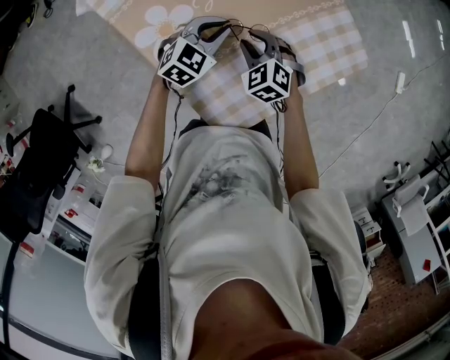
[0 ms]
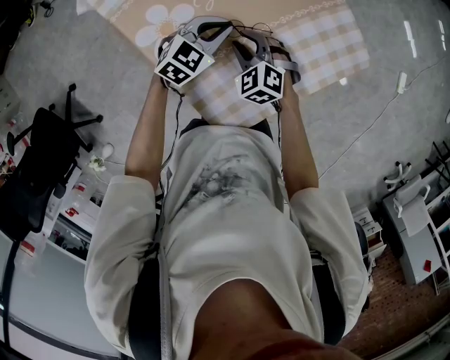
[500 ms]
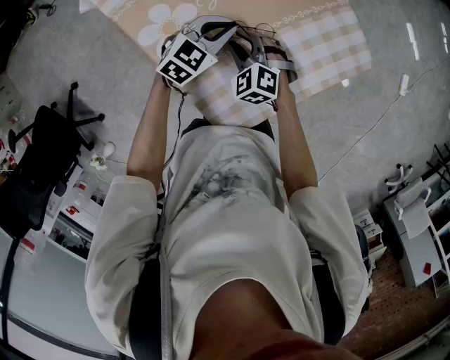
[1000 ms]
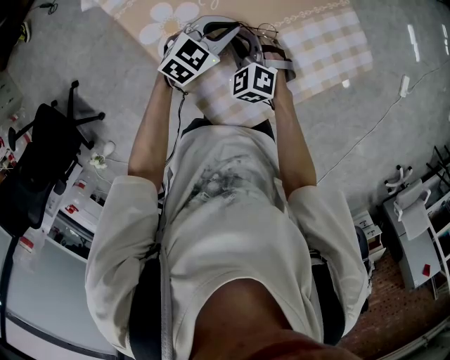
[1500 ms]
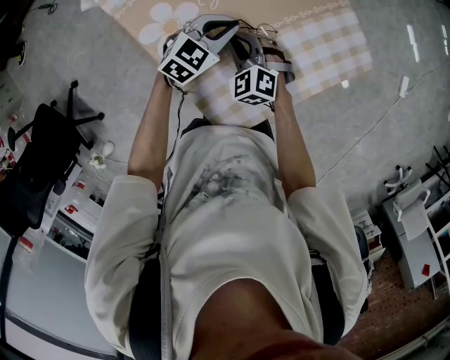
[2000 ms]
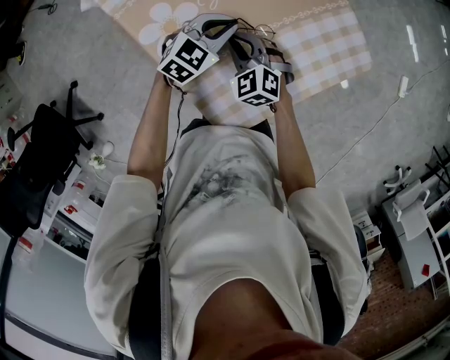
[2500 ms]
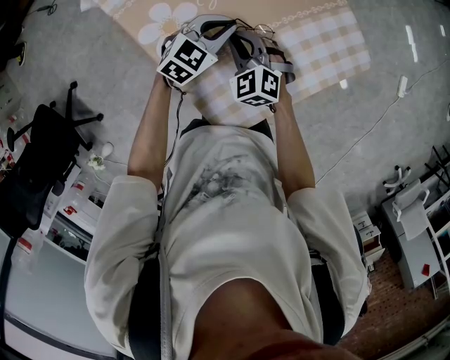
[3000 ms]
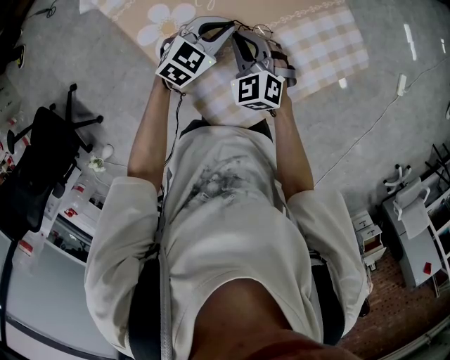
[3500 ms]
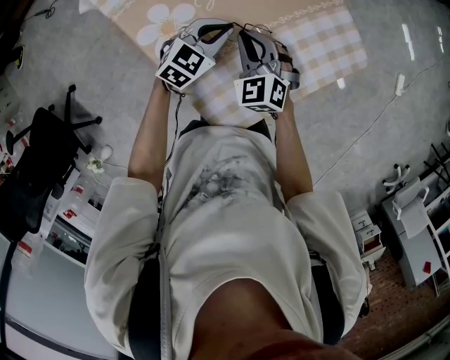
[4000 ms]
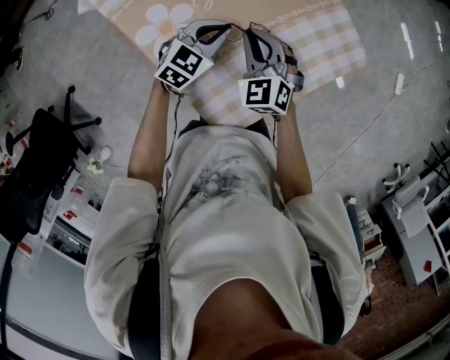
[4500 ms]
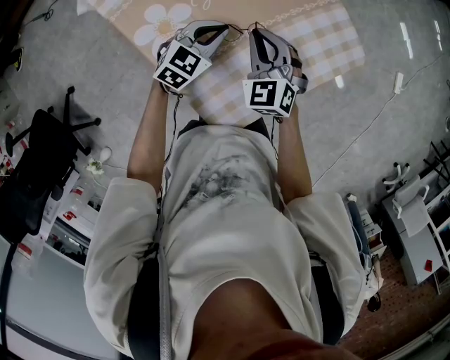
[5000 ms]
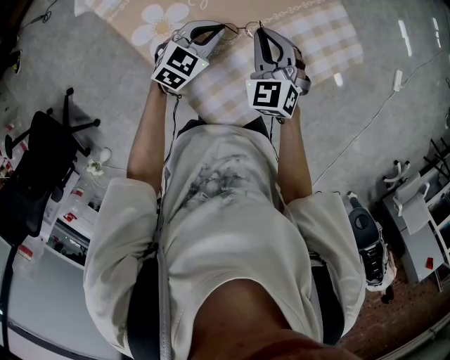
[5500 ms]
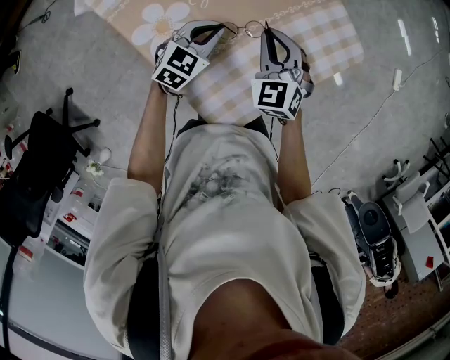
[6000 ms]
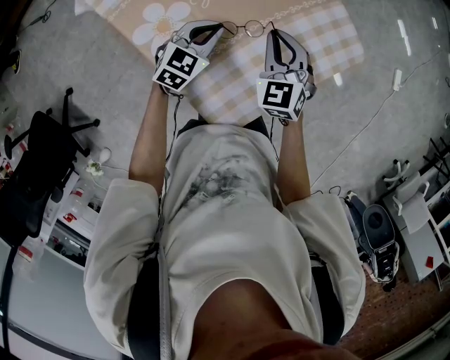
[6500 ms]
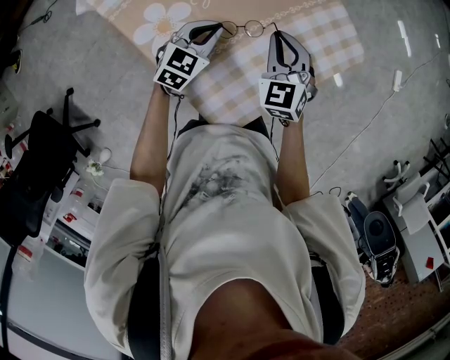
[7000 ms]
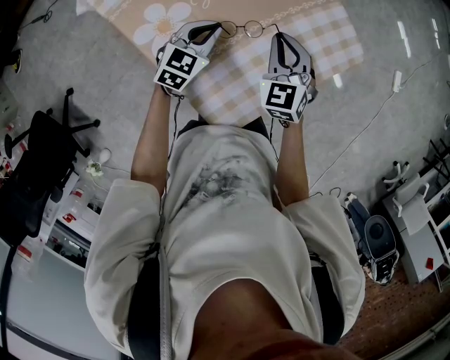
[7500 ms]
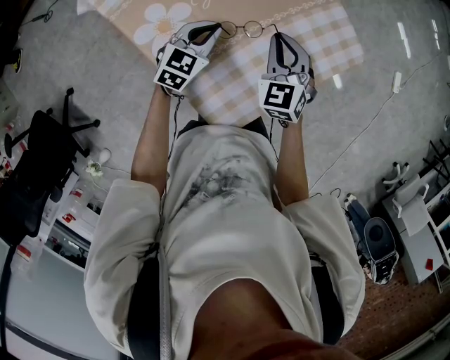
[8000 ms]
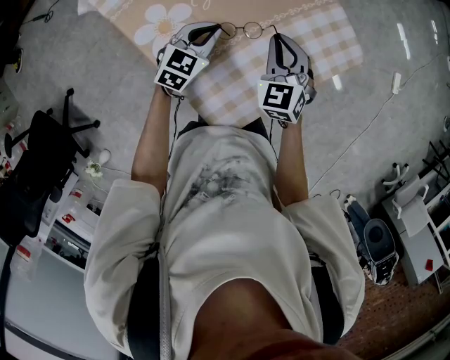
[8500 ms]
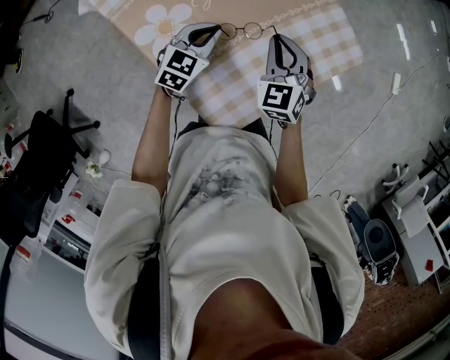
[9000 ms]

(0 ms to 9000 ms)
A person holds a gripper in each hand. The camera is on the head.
0 ms - 2000 ms: The grippers stay close to where they were, moving slightly.
2000 ms - 4500 ms: The right gripper moves upward, approximately 10 cm.
4500 ms - 7000 ms: The right gripper goes some 5 cm to the right.
7000 ms - 9000 ms: Both grippers stay about where they are.

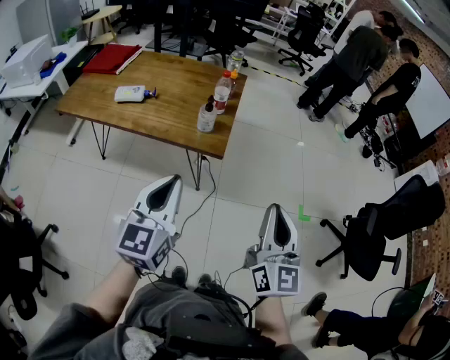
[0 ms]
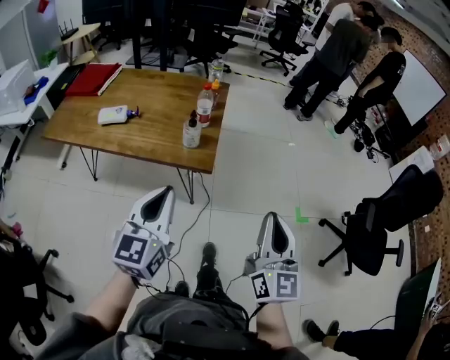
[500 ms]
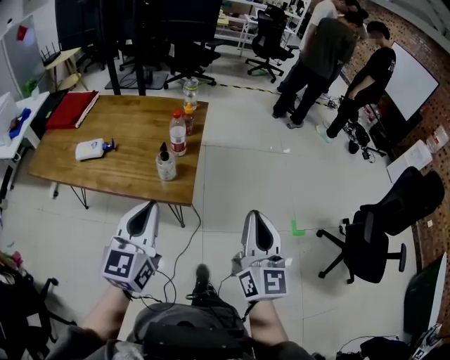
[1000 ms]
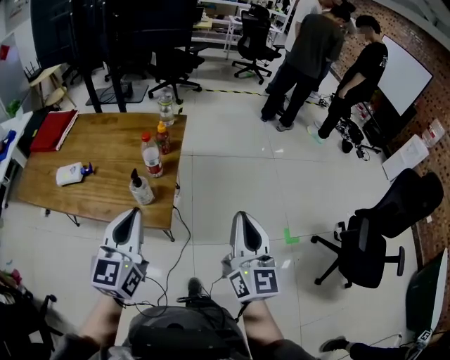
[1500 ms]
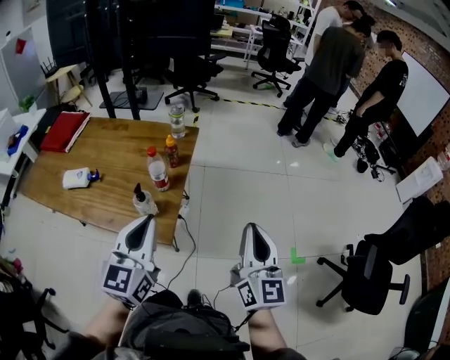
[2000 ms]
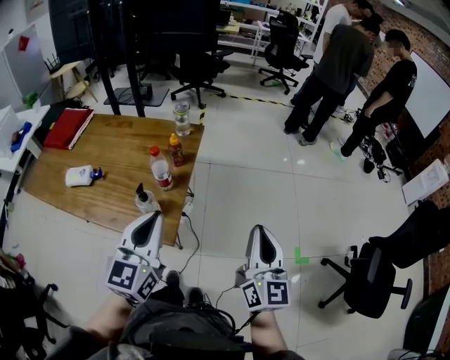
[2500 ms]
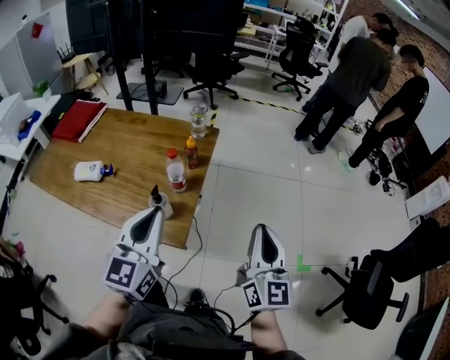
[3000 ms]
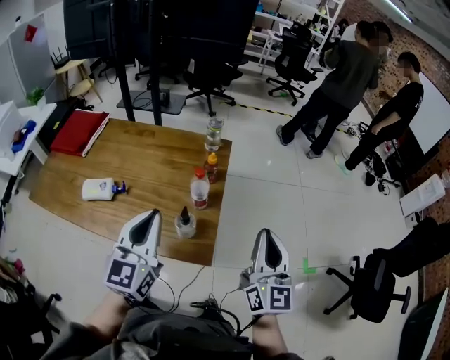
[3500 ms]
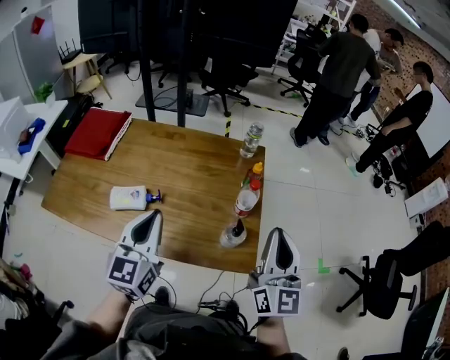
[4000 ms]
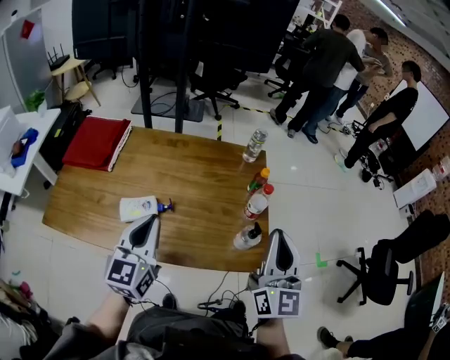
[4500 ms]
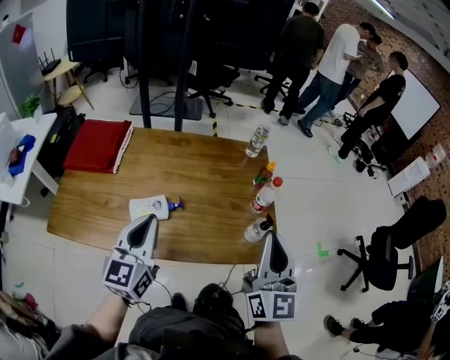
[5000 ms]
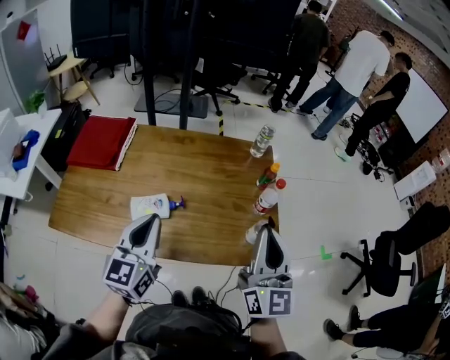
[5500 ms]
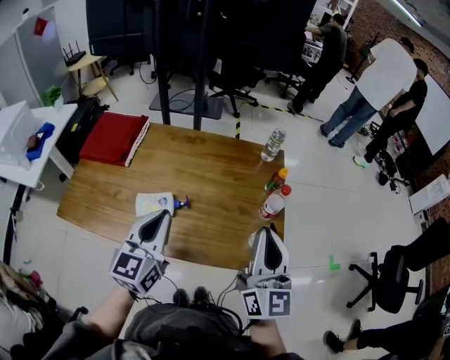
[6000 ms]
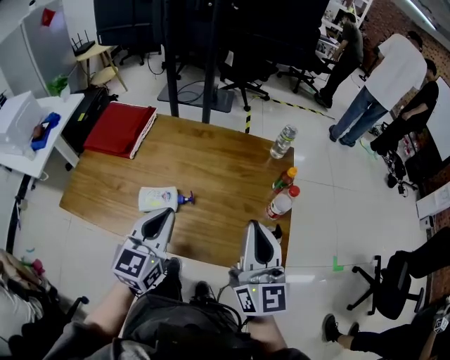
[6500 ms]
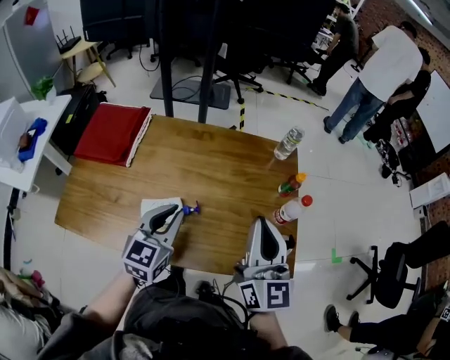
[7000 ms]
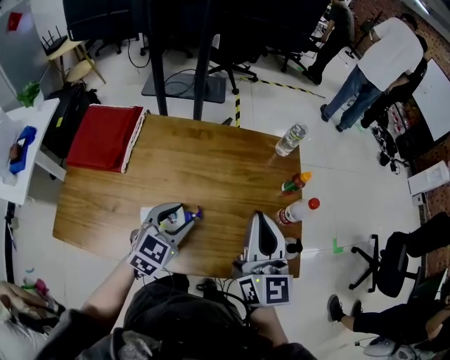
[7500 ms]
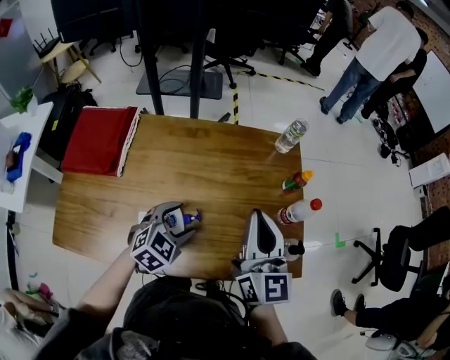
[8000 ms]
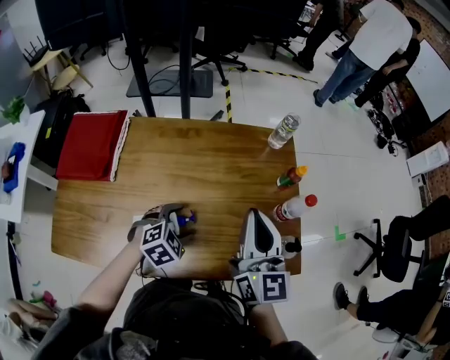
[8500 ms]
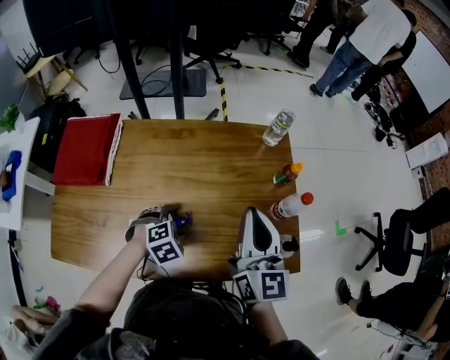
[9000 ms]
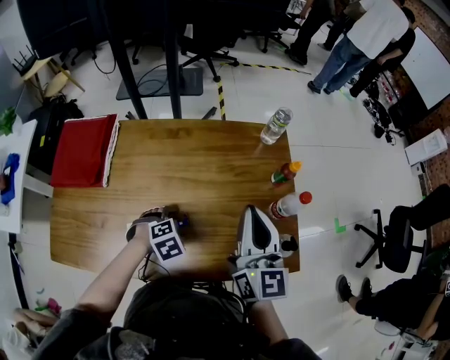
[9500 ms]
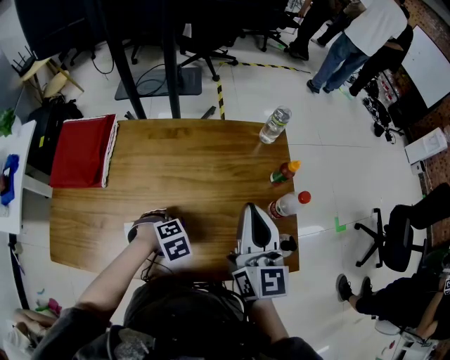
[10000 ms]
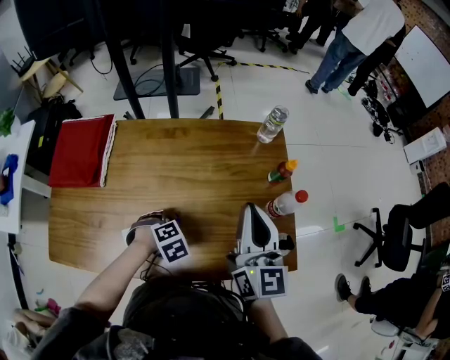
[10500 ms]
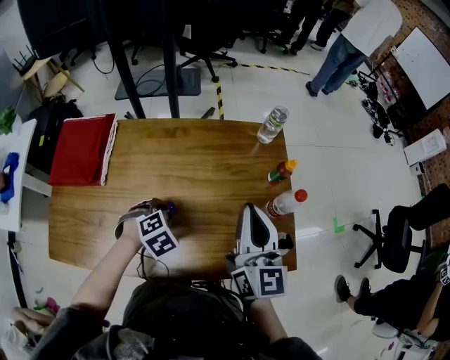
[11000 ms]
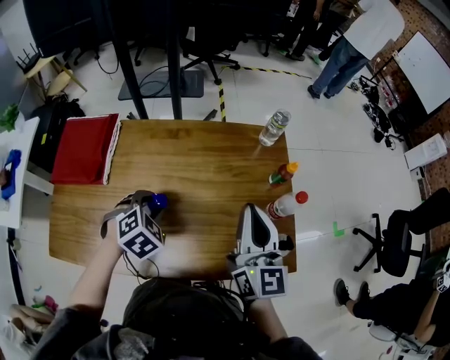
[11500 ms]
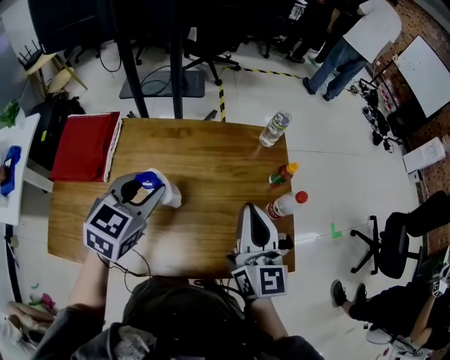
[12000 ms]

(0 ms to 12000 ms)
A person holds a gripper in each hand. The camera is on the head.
0 ms - 2000 ms: The pair of grippers is taken forward and to the right, roughly 40 cm.
2000 ms - 4000 ms: Both grippers are carried to the left, some 40 cm.
4000 ms - 6000 ms: The two grippers go roughly 15 cm to the left.
6000 ms - 8000 ms: The right gripper heads forward, to the left and downward, covering some 25 cm, while the left gripper travels downward and forward by about 25 cm, tips its fingers downward by some 40 degrees, and opens its fingers.
8000 ms - 10000 ms: The right gripper changes place by roughly 5 cm; the left gripper moves downward, about 10 cm, and tips its fingers downward by roughly 40 degrees.
10000 ms - 12000 ms: The left gripper moves upward, about 25 cm, and tilts its fingers about 50 degrees upward.

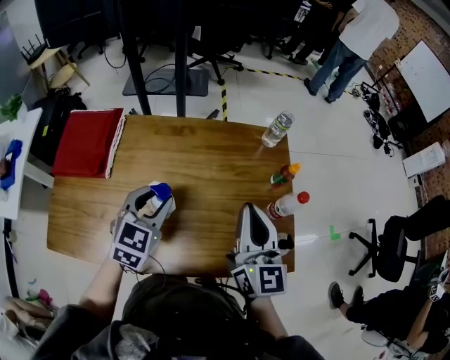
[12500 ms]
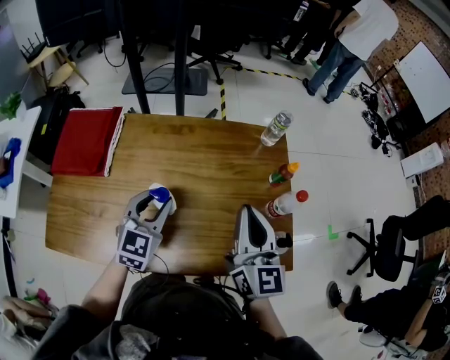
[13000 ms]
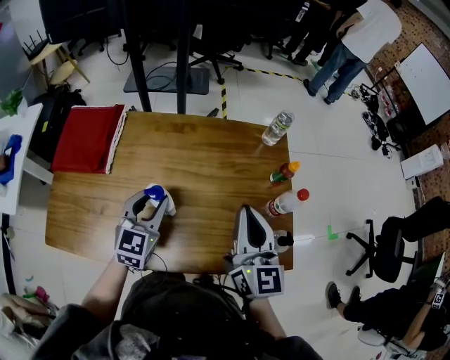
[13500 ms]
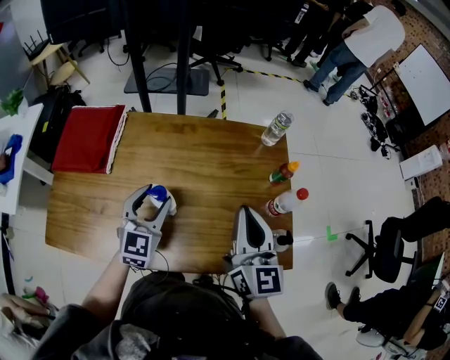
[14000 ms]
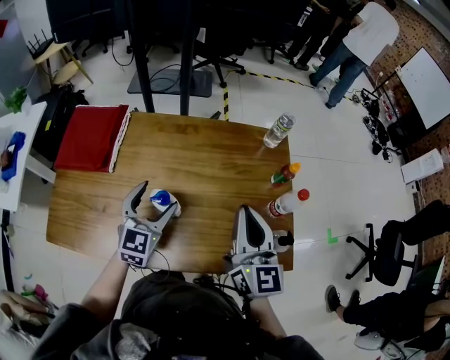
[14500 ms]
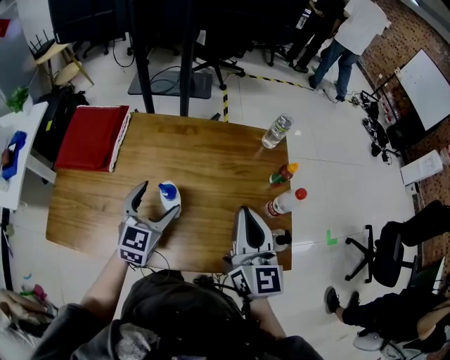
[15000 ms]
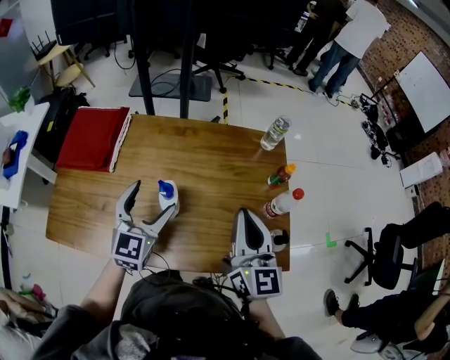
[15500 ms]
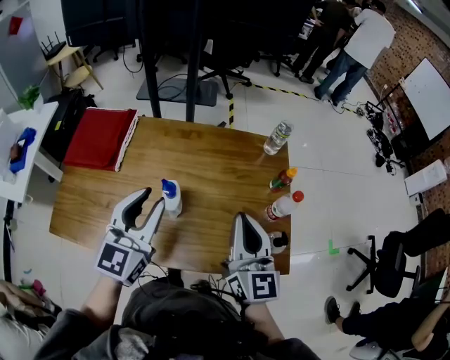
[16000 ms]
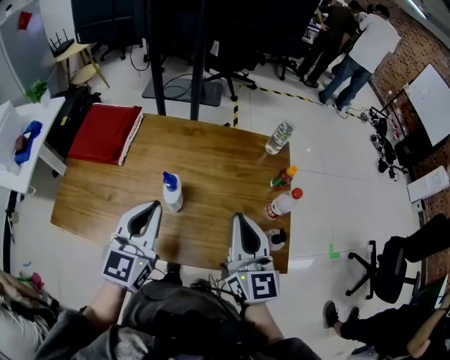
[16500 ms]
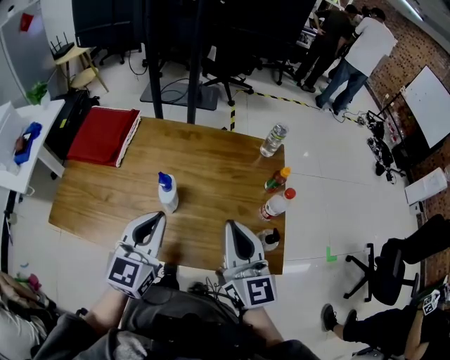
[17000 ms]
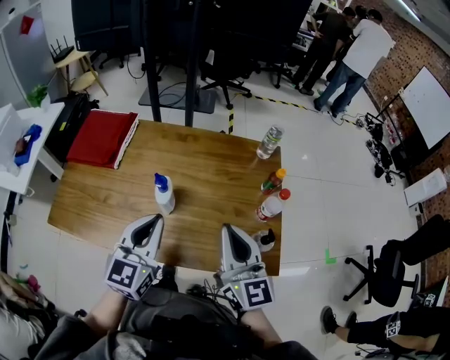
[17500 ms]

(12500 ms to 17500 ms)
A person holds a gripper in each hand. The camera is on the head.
12500 ms - 15000 ms: The left gripper ends up about 5 cm from where it was, and opens.
15000 ms - 17500 ms: The left gripper is displaced backward, upward and to the right by some 20 cm, and closes up; the right gripper travels backward by roughly 10 cm.

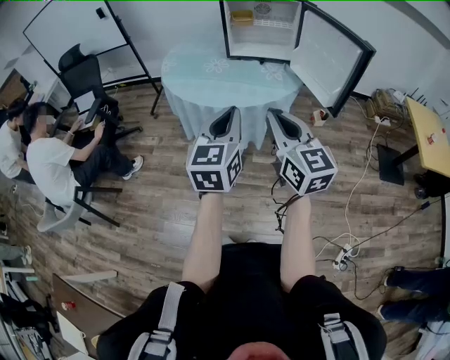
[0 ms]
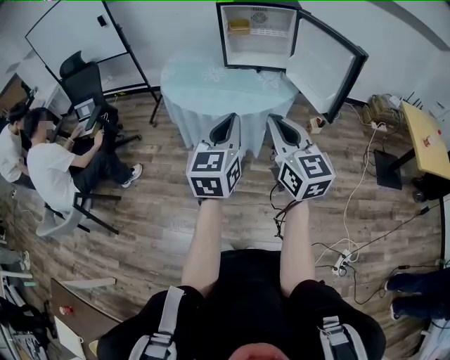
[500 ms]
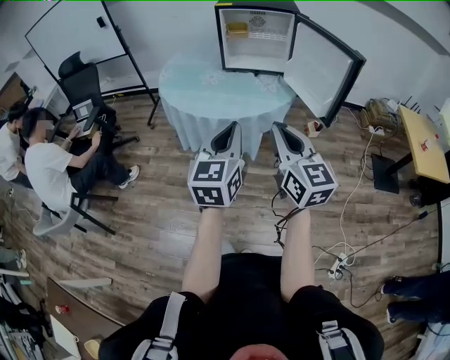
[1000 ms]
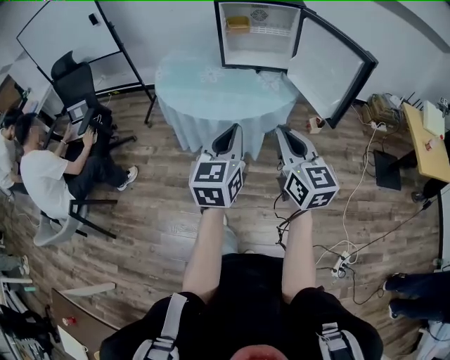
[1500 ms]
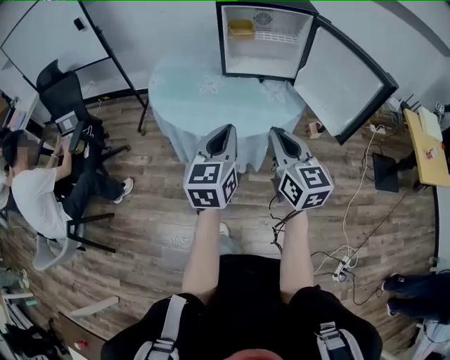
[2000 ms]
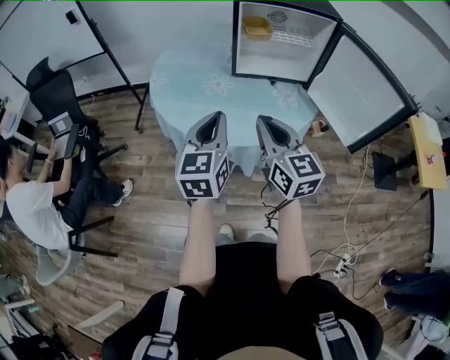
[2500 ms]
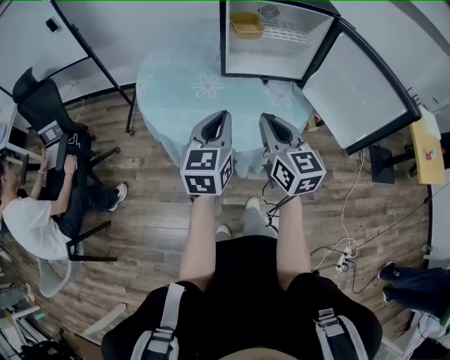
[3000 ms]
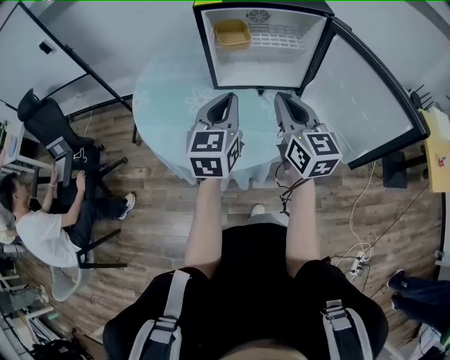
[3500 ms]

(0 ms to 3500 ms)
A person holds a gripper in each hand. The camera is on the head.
0 ms - 2000 ms: Both grippers travel together forward, roughly 15 cm.
2000 ms - 3500 ms: The grippers both shift forward by roughly 25 cm.
